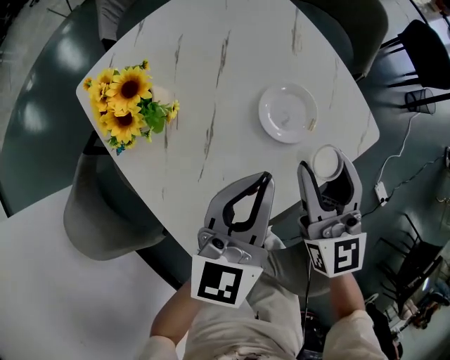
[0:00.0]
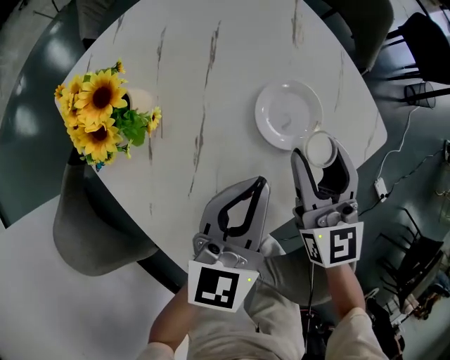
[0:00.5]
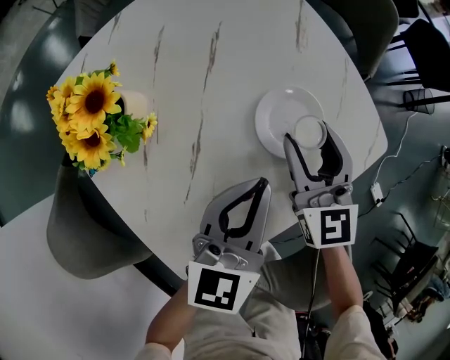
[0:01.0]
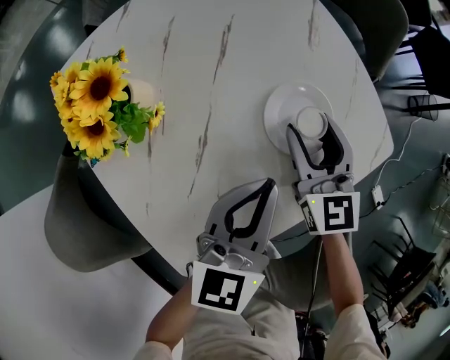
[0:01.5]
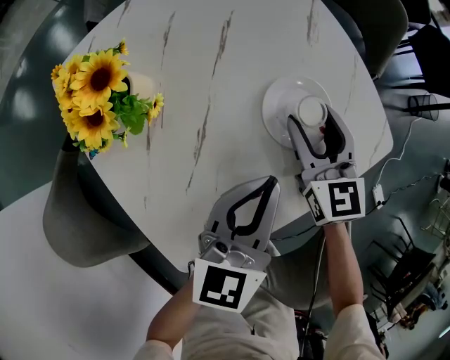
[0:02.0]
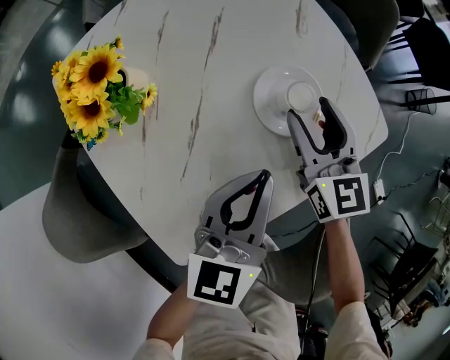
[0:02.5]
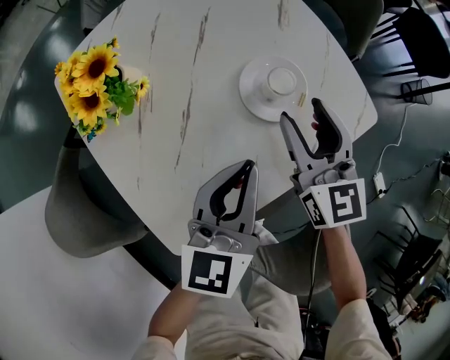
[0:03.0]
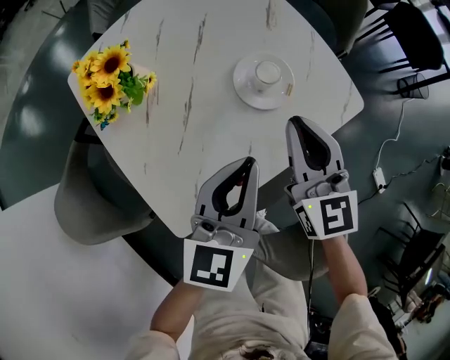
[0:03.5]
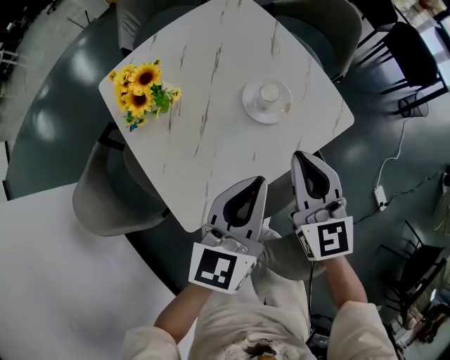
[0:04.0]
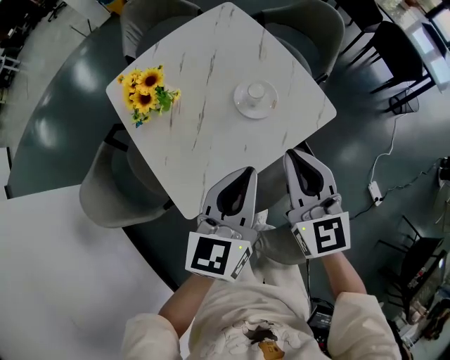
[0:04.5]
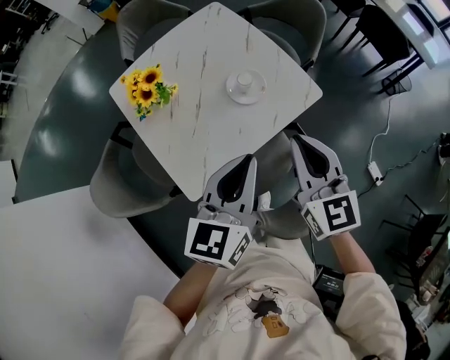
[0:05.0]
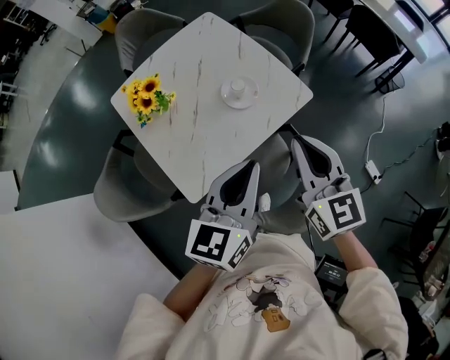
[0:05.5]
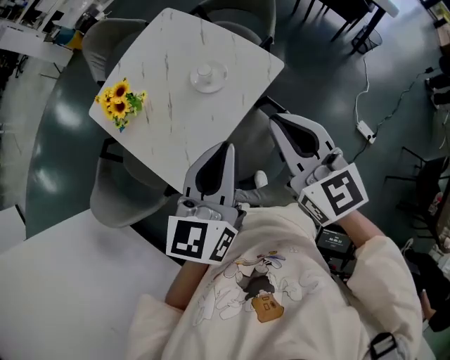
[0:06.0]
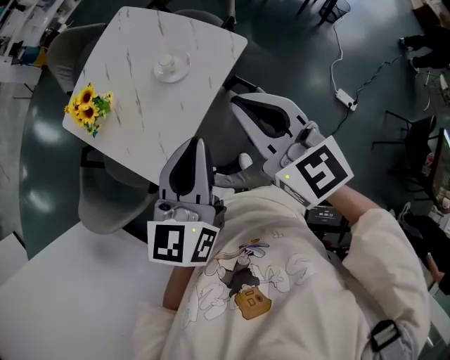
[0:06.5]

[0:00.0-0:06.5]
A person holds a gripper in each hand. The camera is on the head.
0:00.0 to 0:02.0: The left gripper shifts some 10 cm downward. Meanwhile the right gripper travels downward and forward by some 15 cm.
0:02.0 to 0:04.5: Both grippers travel together upward and backward, about 30 cm. The right gripper closes up.
0:04.5 to 0:06.5: The grippers both shift upward, backward and to the right by roughly 15 cm.

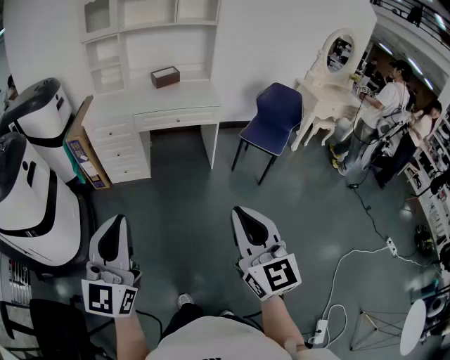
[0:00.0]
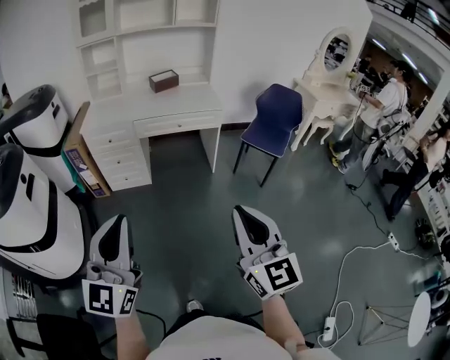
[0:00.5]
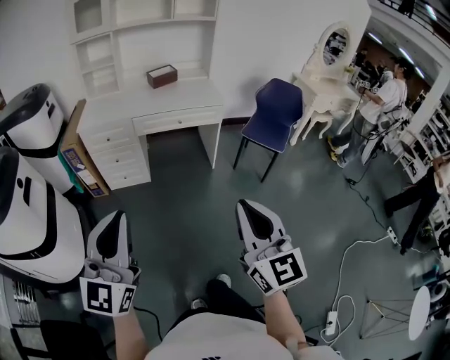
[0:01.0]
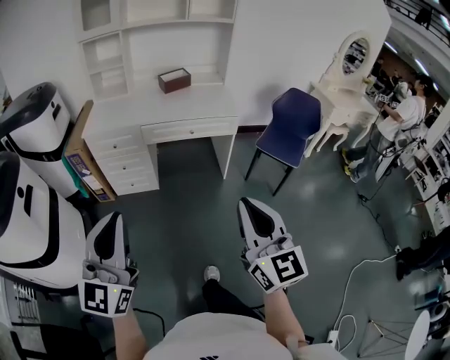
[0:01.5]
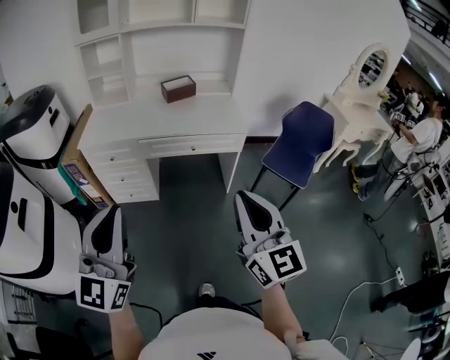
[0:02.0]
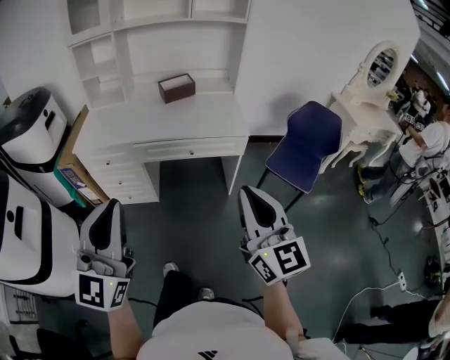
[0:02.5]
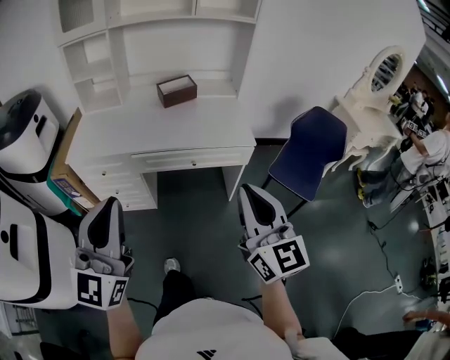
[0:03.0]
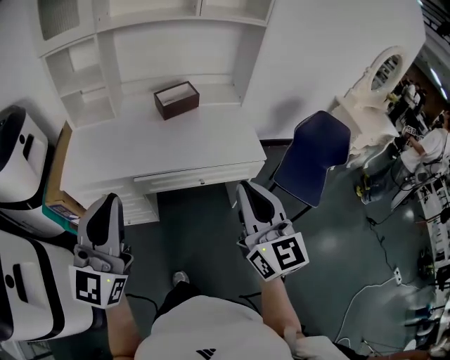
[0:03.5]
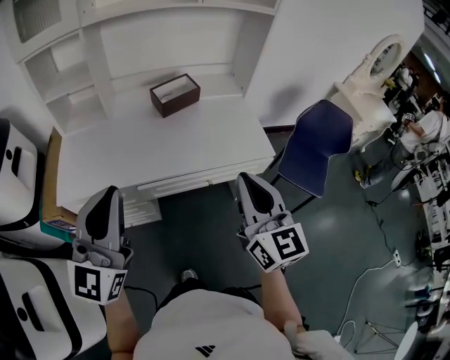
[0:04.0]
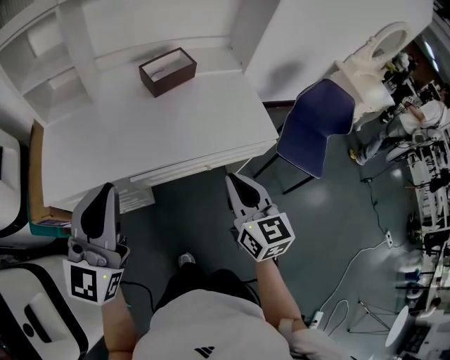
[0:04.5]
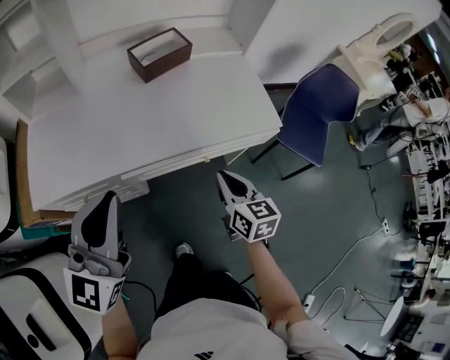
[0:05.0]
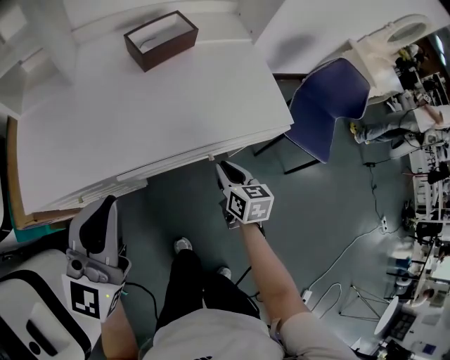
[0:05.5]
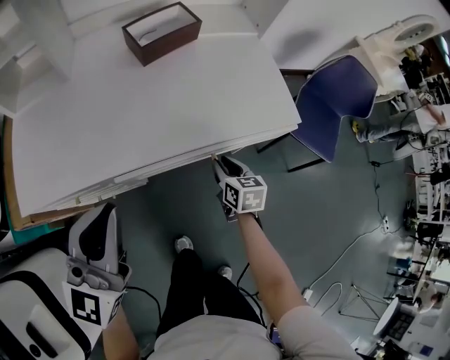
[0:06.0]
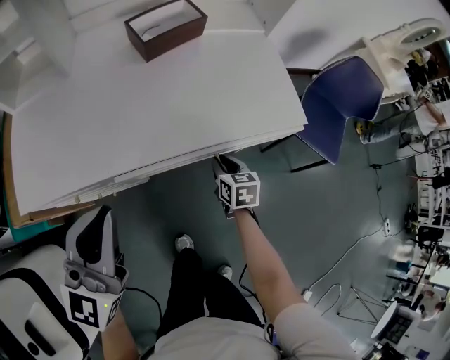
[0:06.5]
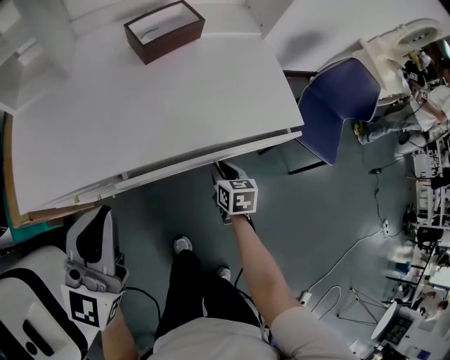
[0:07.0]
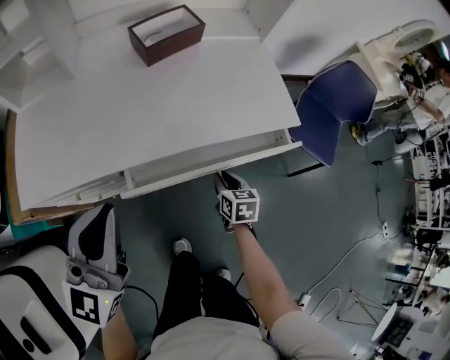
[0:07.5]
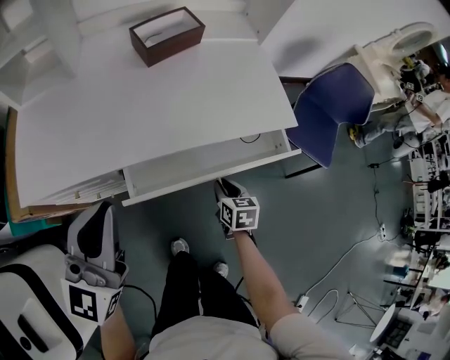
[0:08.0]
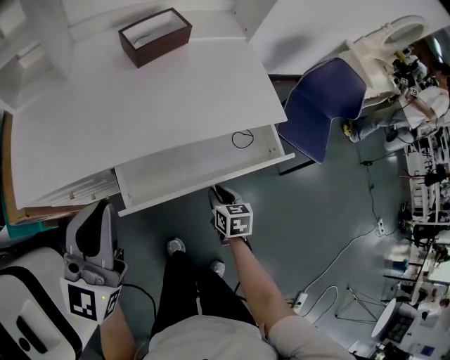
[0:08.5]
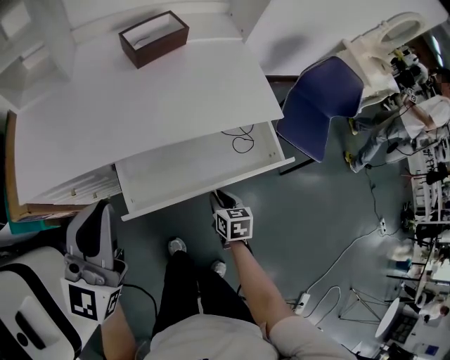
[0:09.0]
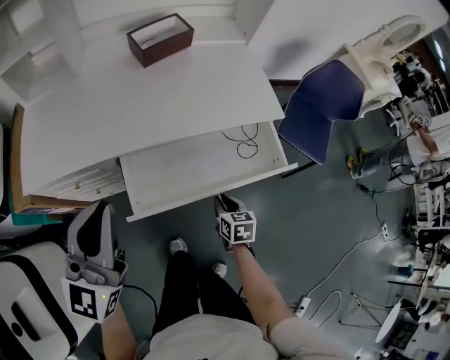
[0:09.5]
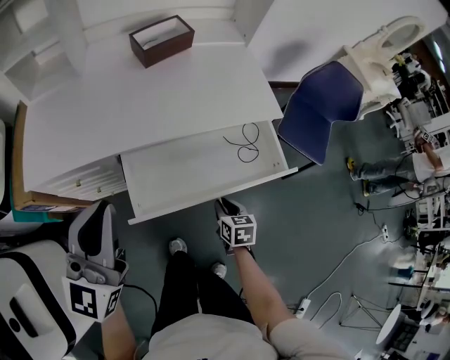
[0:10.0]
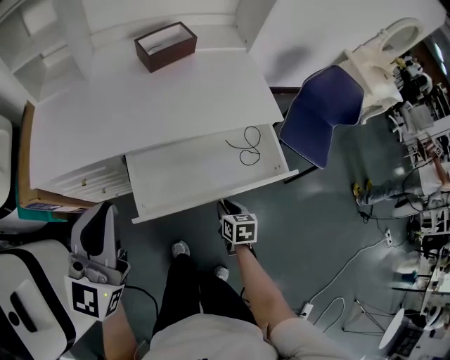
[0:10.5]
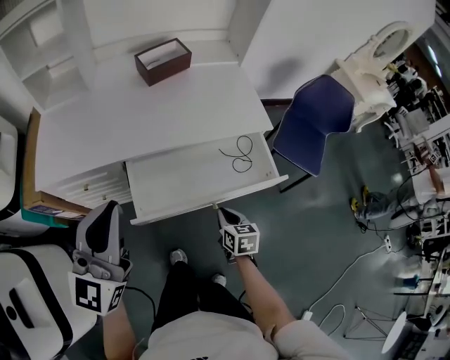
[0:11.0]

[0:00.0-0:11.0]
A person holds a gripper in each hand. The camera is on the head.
0:00.0 to 0:02.0: The two grippers go some 30 cm forward.
0:02.0 to 0:03.5: The two grippers go about 30 cm forward.
0:03.5 to 0:05.5: The right gripper moves downward and forward, some 40 cm, and tilts its fingers some 40 degrees downward; the left gripper moves forward and downward, some 20 cm, and turns by approximately 20 degrees.
0:05.5 to 0:07.5: The right gripper goes about 10 cm downward.
0:07.5 to 0:09.0: The right gripper moves backward, about 10 cm.
0:09.0 to 0:11.0: The left gripper moves backward, some 5 cm. Meanwhile the right gripper moves backward and upward, roughly 10 cm.

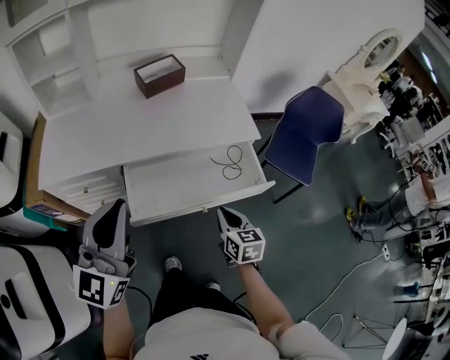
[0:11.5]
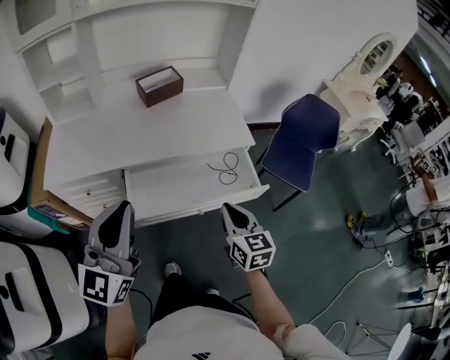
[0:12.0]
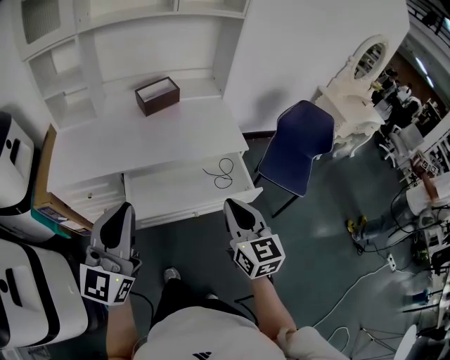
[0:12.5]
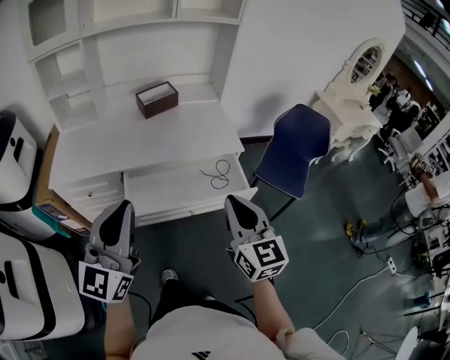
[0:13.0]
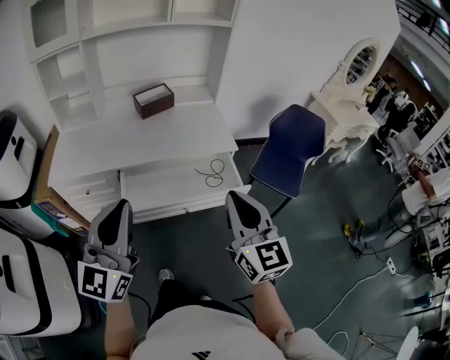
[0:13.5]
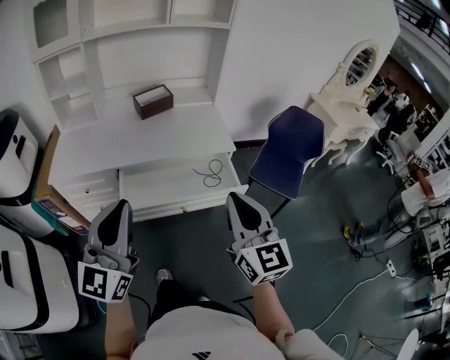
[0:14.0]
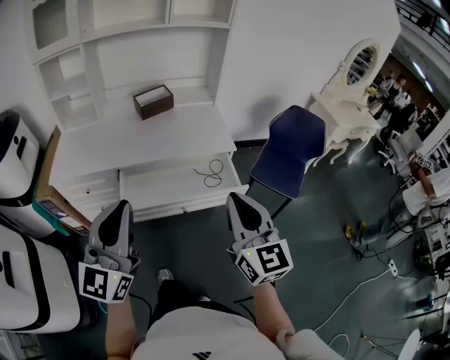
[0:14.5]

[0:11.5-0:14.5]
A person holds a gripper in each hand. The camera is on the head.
0:11.5 to 0:13.0: The right gripper moves upward, approximately 25 cm, and swivels approximately 30 degrees. Meanwhile the left gripper goes some 10 cm backward and to the right.
0:13.0 to 0:14.5: The left gripper moves approximately 5 cm. The right gripper shifts by approximately 5 cm.

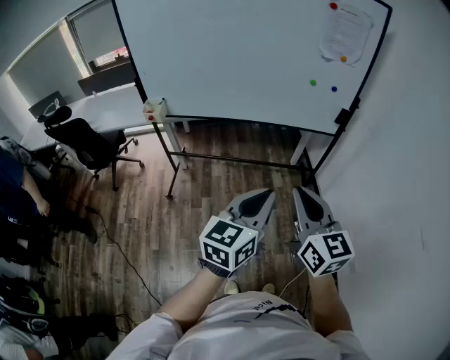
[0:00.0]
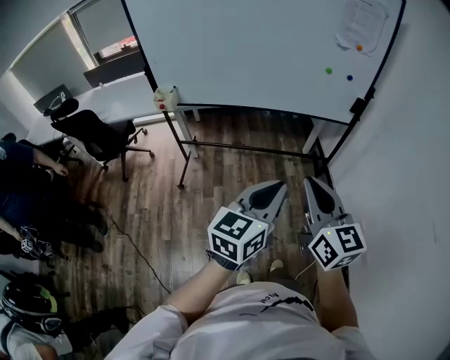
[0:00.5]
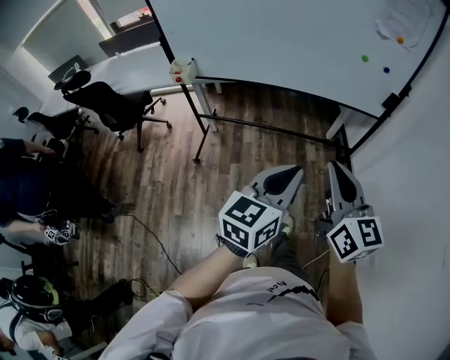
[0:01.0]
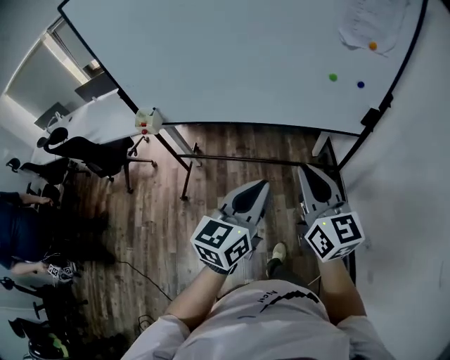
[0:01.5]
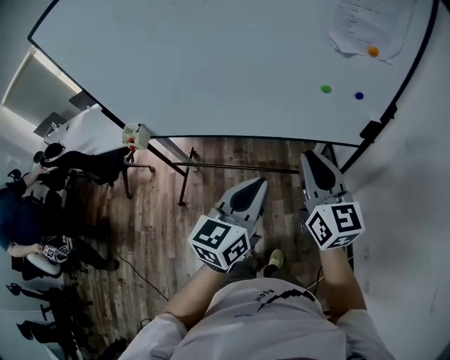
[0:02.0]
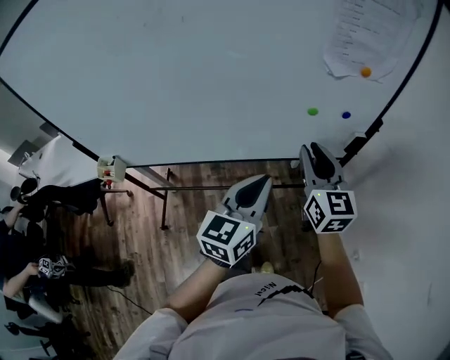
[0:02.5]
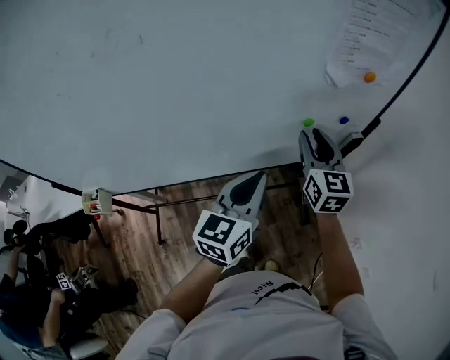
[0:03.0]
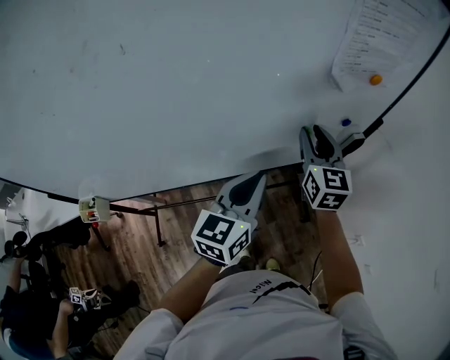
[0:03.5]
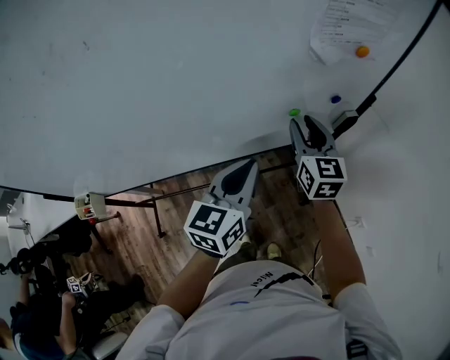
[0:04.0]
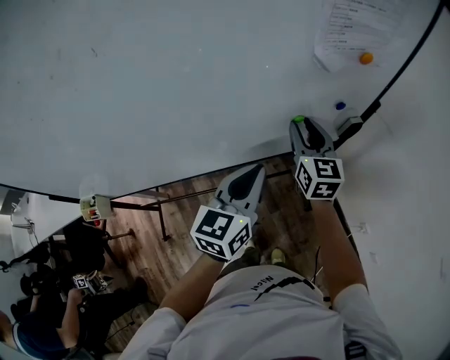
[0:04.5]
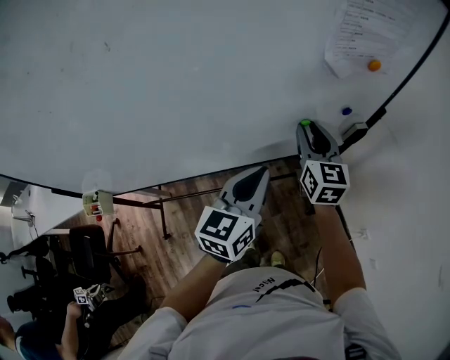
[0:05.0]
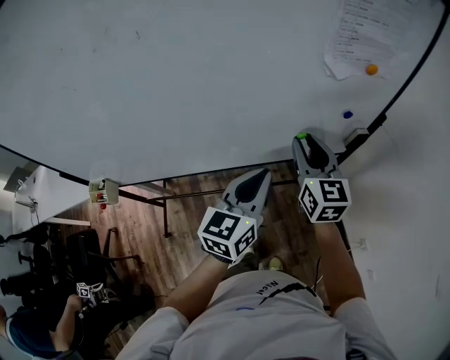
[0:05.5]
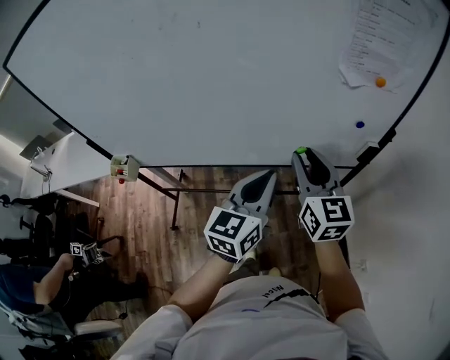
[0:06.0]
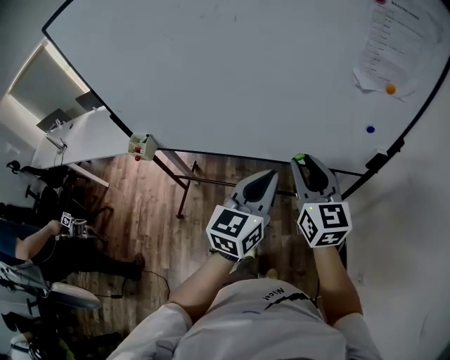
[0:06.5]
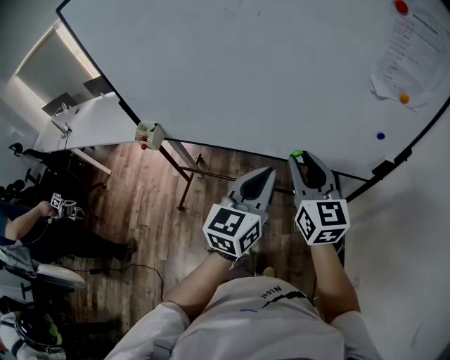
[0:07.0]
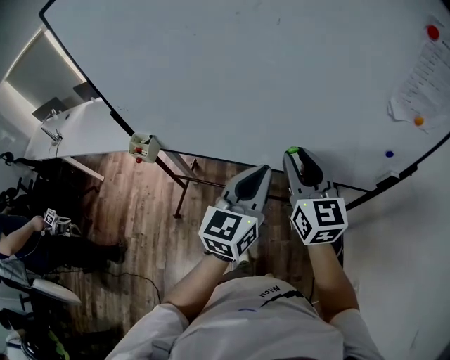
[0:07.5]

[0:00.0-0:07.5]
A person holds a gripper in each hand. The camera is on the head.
0:00.0 to 0:02.0: Both grippers travel together forward, approximately 35 cm.
0:02.0 to 0:04.0: The grippers both shift forward by roughly 20 cm. The right gripper turns by some 30 degrees, and opens up.
0:04.0 to 0:05.5: The right gripper goes approximately 5 cm backward.
0:05.5 to 0:07.5: The right gripper is displaced to the left and backward by about 20 cm, and swivels approximately 20 degrees; the left gripper moves to the left, about 15 cm, and changes its angle by some 20 degrees.
